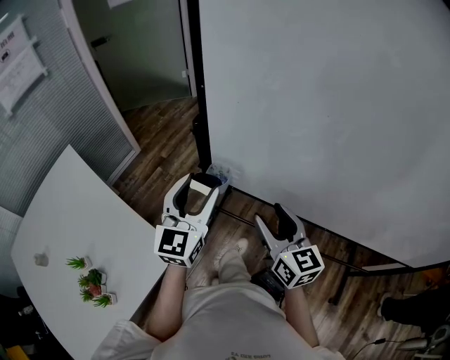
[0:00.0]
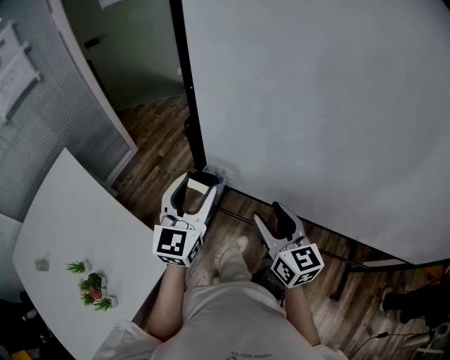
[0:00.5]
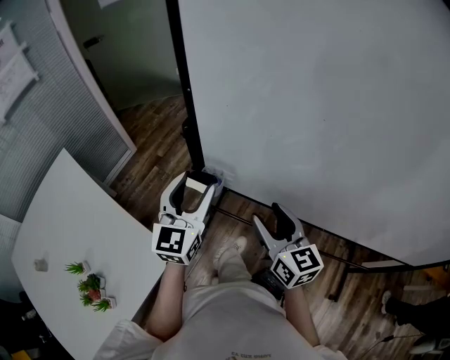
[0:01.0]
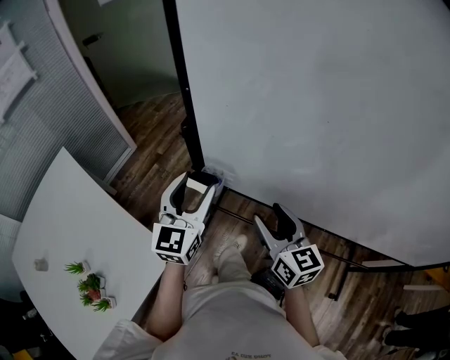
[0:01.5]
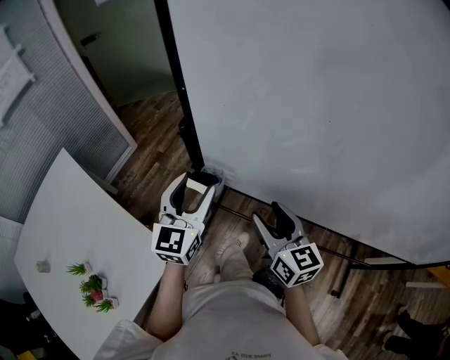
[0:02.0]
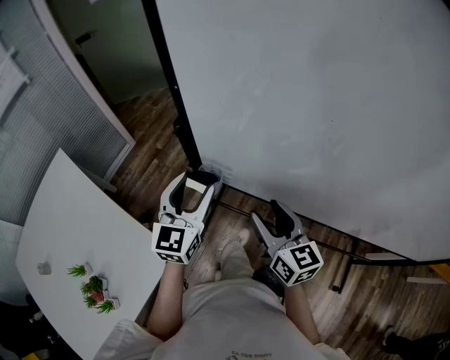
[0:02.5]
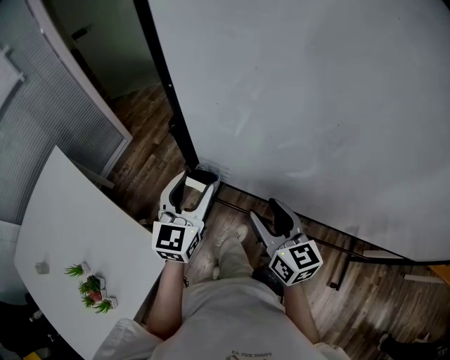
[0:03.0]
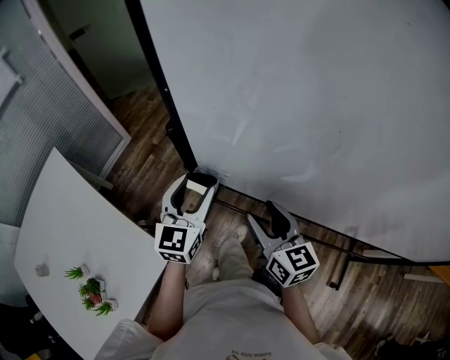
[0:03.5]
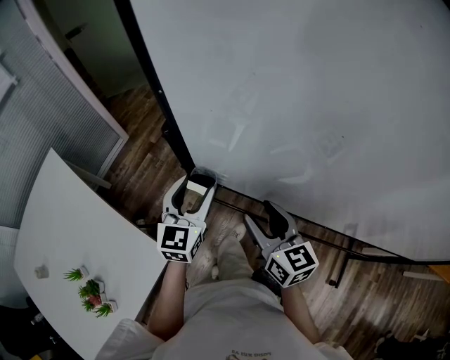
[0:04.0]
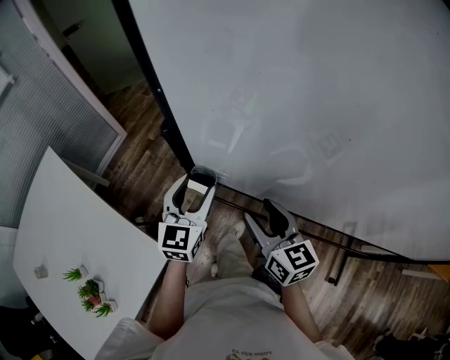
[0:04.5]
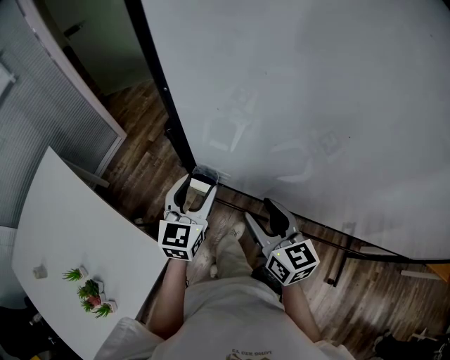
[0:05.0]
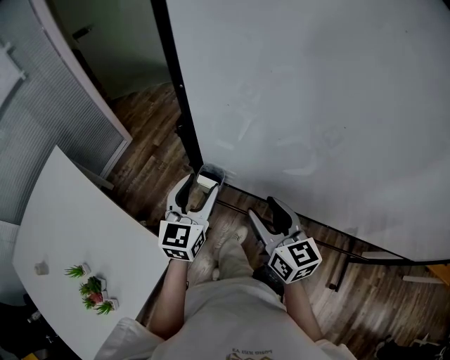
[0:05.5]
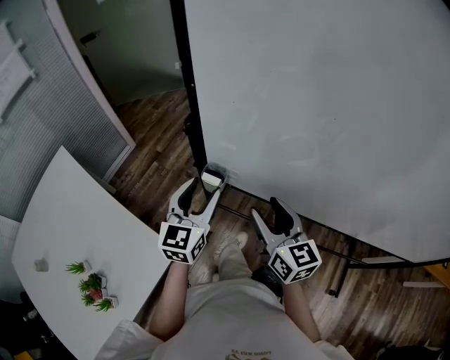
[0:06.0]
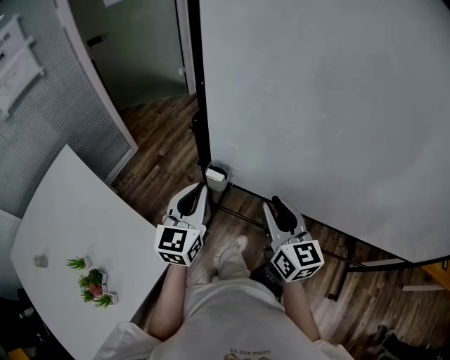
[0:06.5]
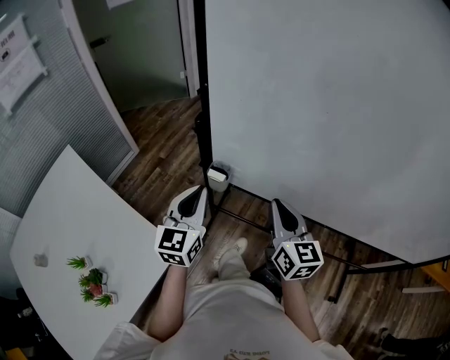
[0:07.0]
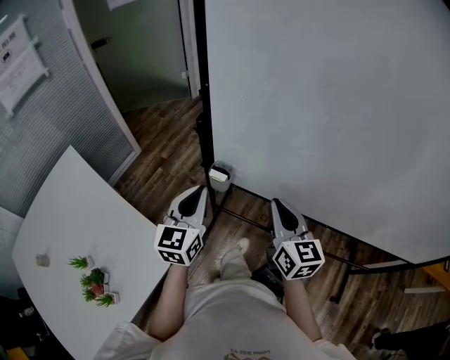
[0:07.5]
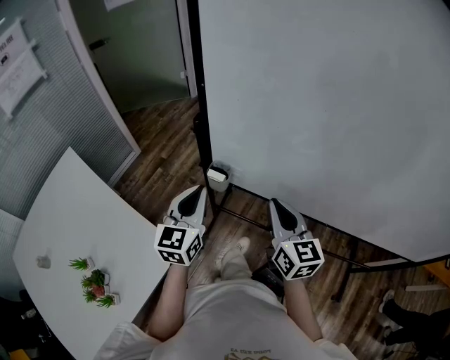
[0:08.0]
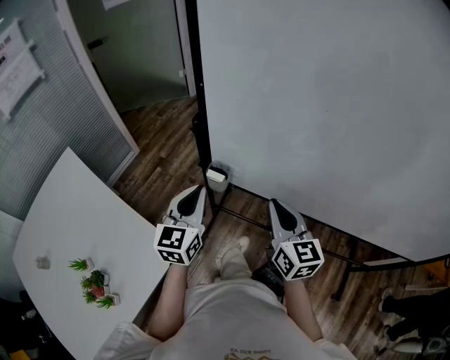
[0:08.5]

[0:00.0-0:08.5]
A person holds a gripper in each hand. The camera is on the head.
0:00.0 to 0:02.0: The grippers stay close to where they were, moving slightly.
0:02.0 to 0:04.0: The left gripper moves downward, roughly 5 cm.
0:04.0 to 0:06.5: The left gripper goes roughly 5 cm backward, and closes its fingers. Meanwhile the right gripper goes approximately 5 cm upward, and closes up.
0:06.5 to 0:08.5: The right gripper closes.

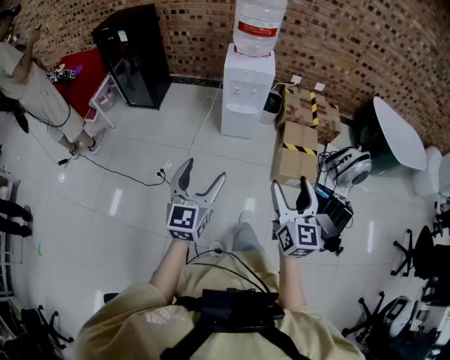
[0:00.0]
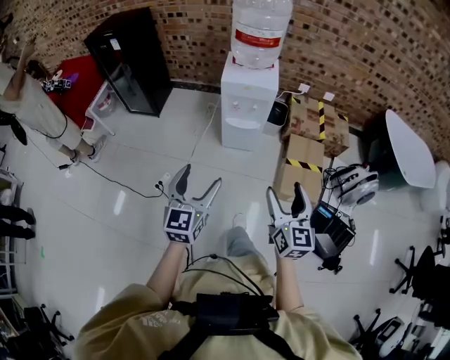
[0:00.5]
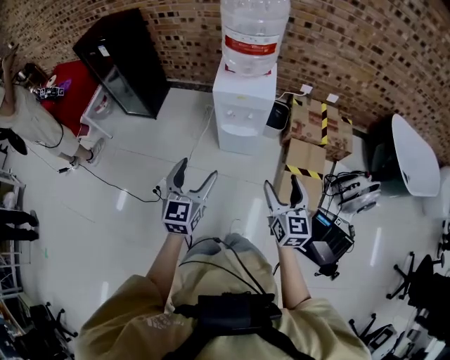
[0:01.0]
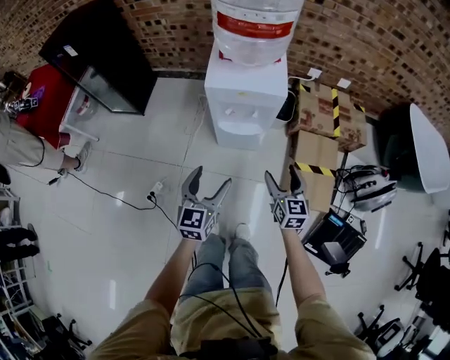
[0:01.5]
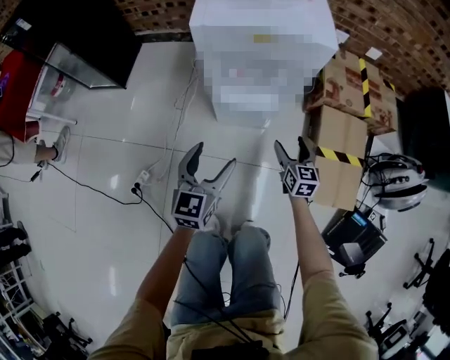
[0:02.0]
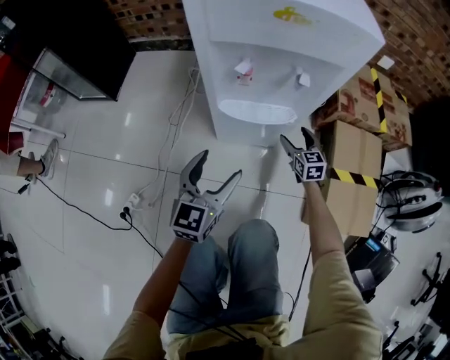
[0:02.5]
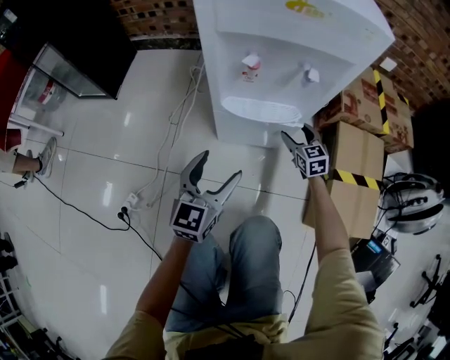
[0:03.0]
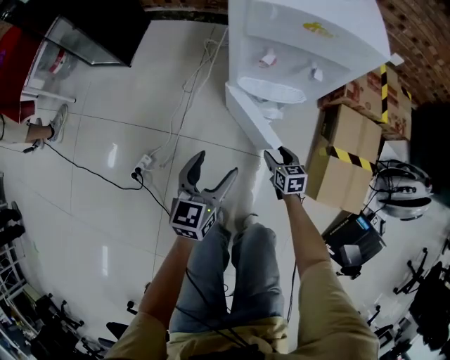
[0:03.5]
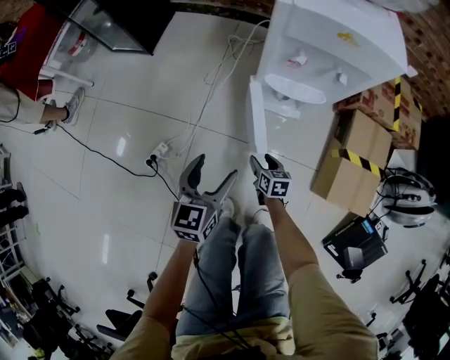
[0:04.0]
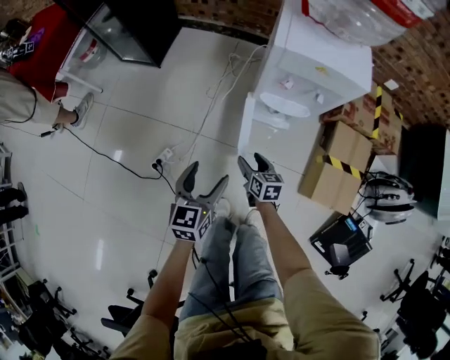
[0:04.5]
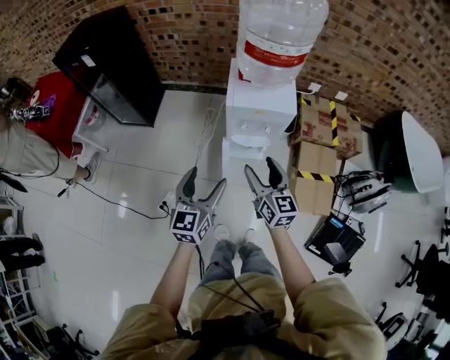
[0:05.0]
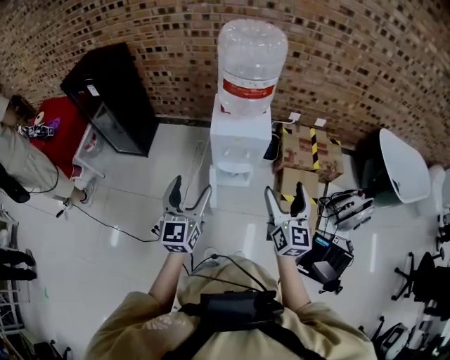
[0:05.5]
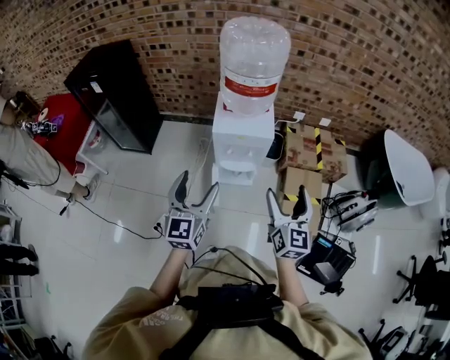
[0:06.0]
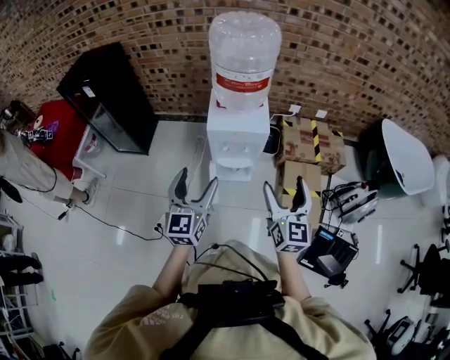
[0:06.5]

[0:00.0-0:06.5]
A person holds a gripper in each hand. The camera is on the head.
0:00.0 to 0:02.0: Both grippers are carried forward, about 50 cm. The two grippers go roughly 50 cm downward. The right gripper rotates approximately 20 degrees.
0:02.0 to 0:04.5: The left gripper travels to the left, backward and upward by approximately 20 cm. Meanwhile the right gripper is displaced to the left by some 25 cm, and changes its angle by about 30 degrees.
0:04.5 to 0:06.5: The right gripper moves upward and to the right, roughly 60 cm, and points its fingers some 30 degrees further upward; the left gripper goes some 40 cm upward, and swivels some 30 degrees.

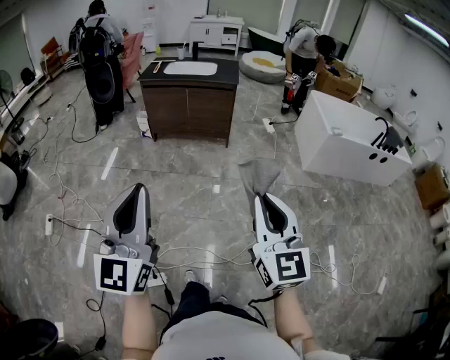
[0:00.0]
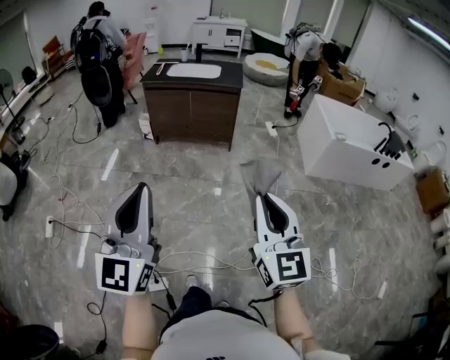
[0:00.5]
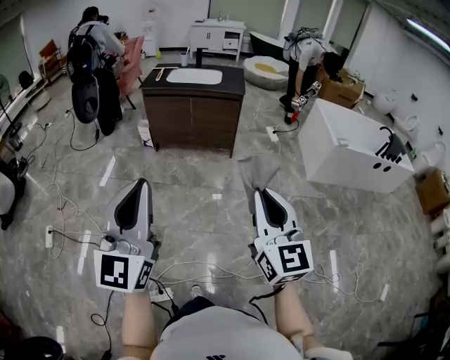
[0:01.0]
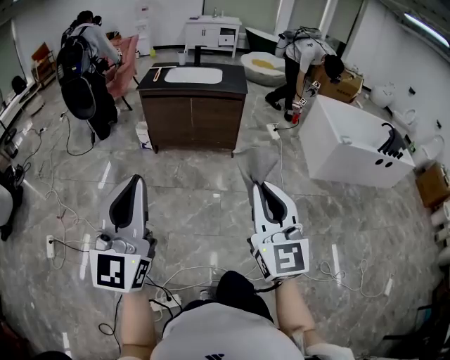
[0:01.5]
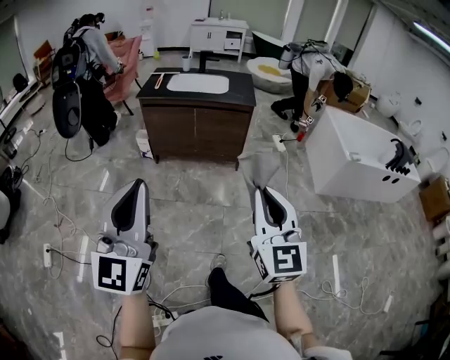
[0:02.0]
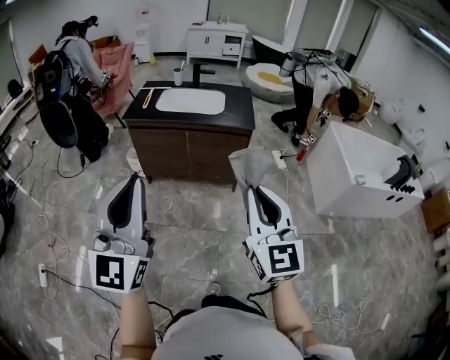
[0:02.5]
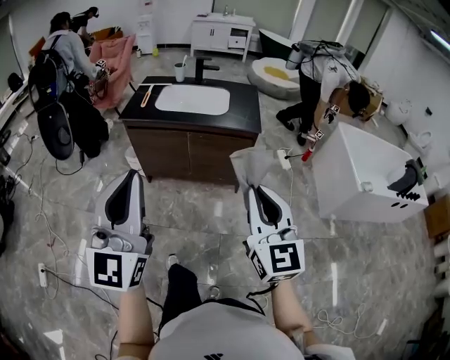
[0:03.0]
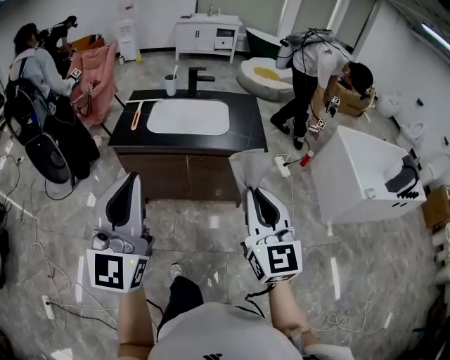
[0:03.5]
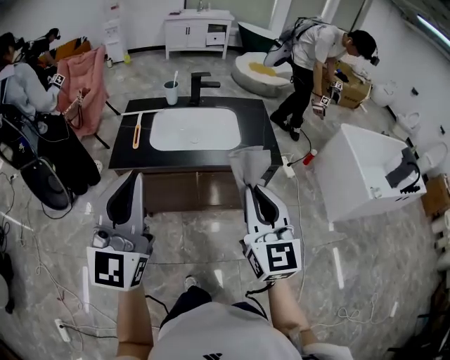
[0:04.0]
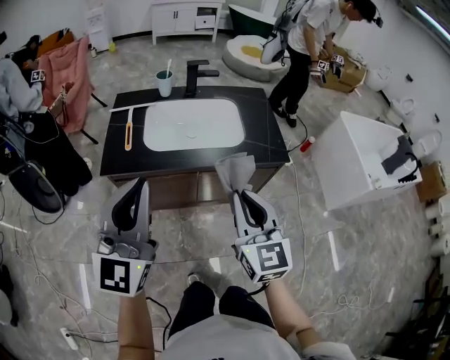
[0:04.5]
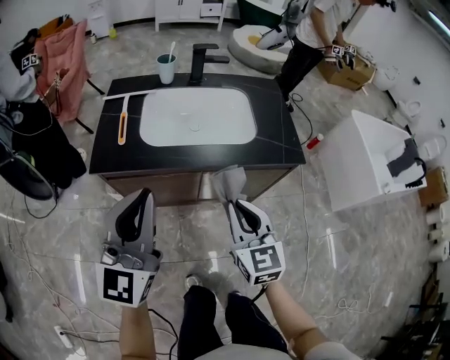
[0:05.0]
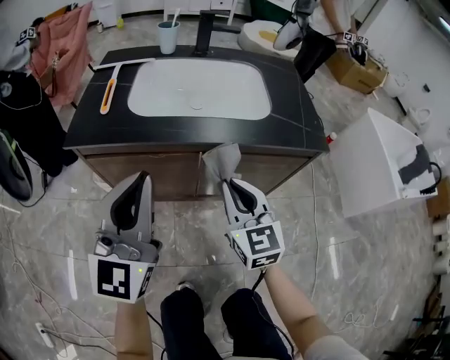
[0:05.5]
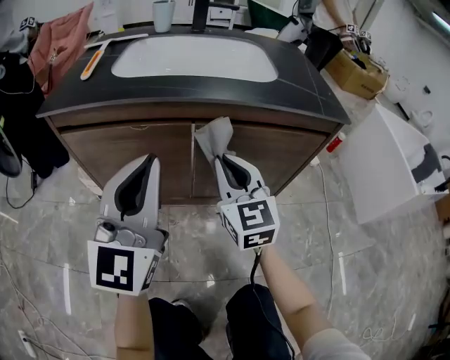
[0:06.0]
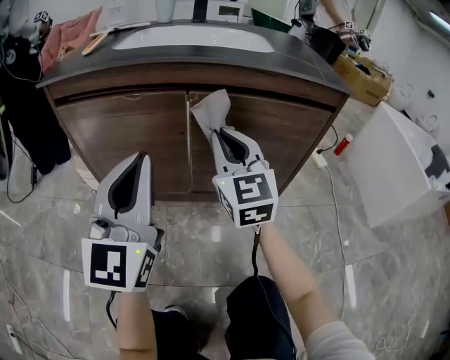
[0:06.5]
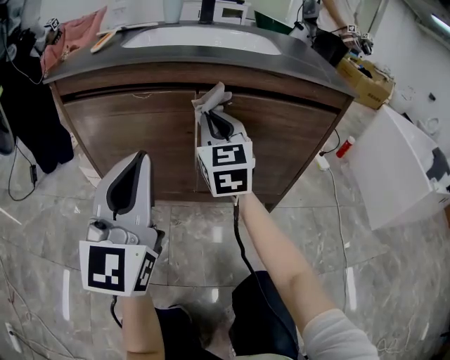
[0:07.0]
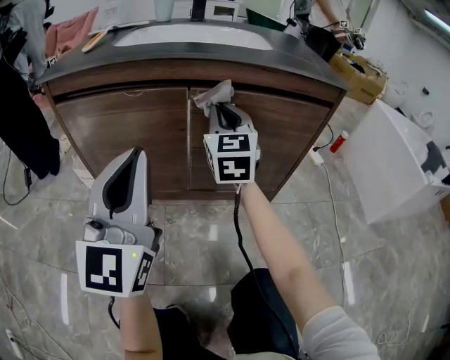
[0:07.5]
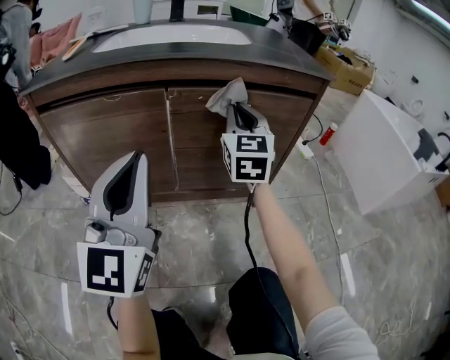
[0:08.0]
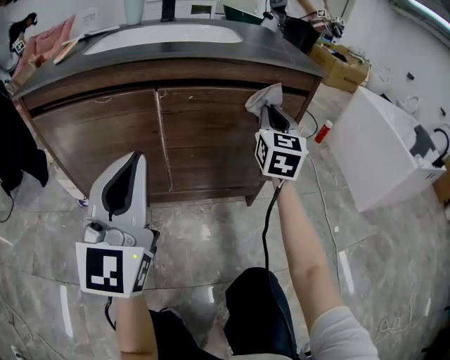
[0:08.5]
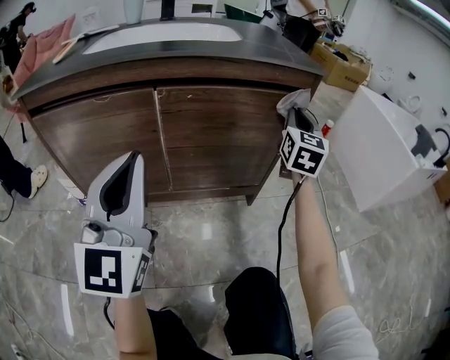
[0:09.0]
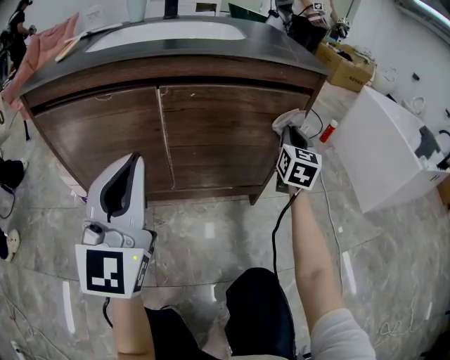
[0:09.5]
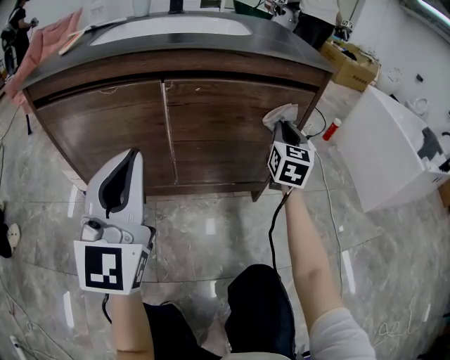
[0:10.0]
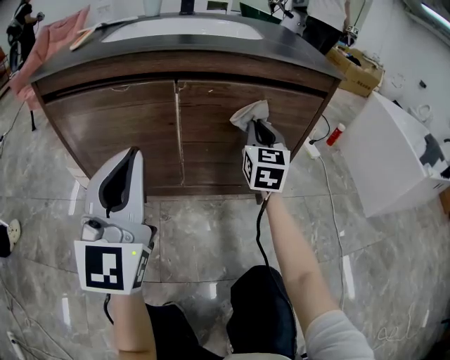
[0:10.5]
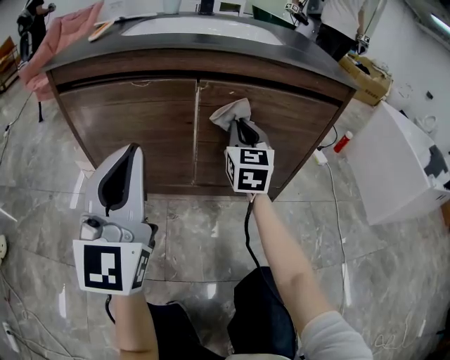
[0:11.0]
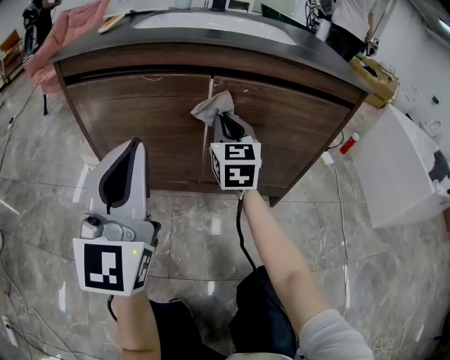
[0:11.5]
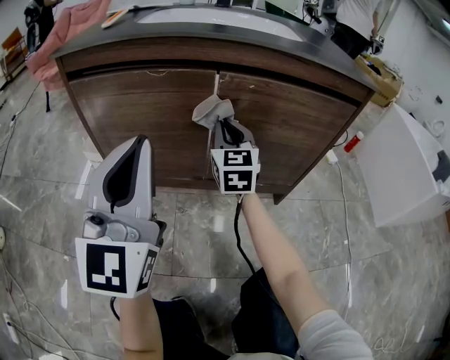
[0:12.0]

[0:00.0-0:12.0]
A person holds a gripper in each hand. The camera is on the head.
0:00.0 to 0:02.0: Both grippers travel together forward, some 30 cm.
0:02.0 to 0:04.0: Both grippers are carried forward, approximately 60 cm.
0:04.0 to 0:06.0: The right gripper moves downward and forward, some 50 cm. Meanwhile the left gripper goes approximately 40 cm downward.
0:06.0 to 0:08.0: The right gripper goes roughly 10 cm to the right and forward; the left gripper goes roughly 10 cm downward.
0:08.0 to 0:10.0: The right gripper shifts roughly 15 cm to the right and downward.
0:10.0 to 0:12.0: The left gripper travels to the left by roughly 5 cm. The right gripper travels to the left by about 30 cm, and turns by approximately 20 degrees.
